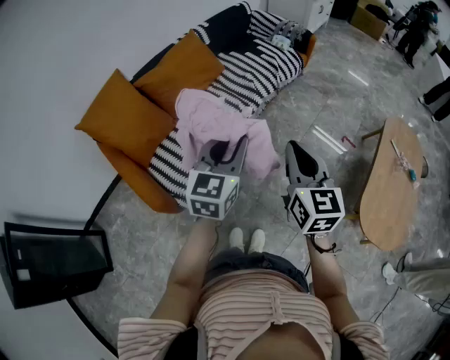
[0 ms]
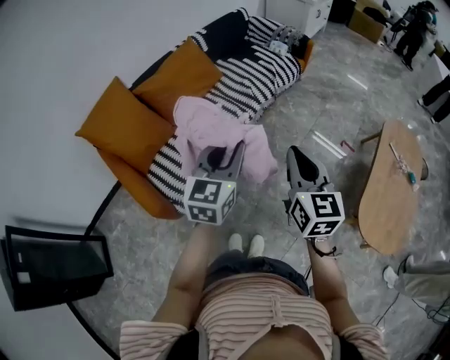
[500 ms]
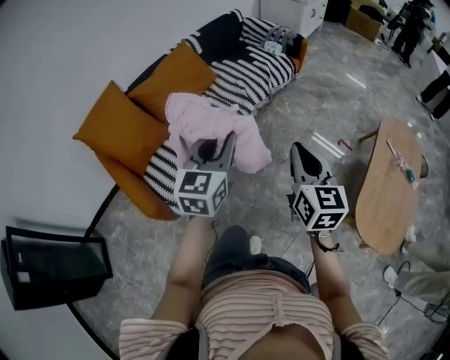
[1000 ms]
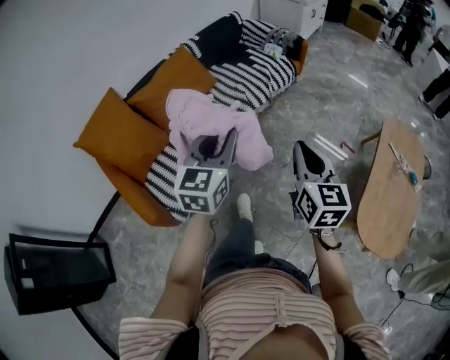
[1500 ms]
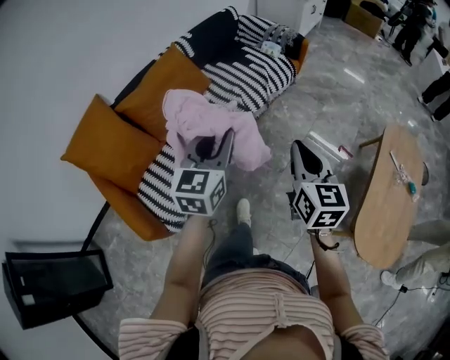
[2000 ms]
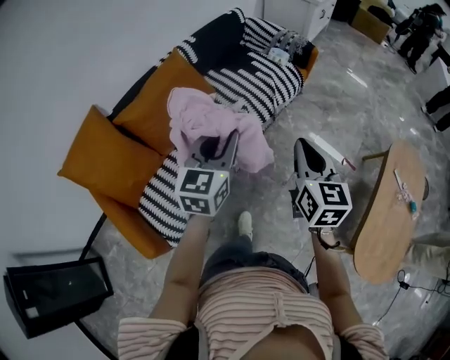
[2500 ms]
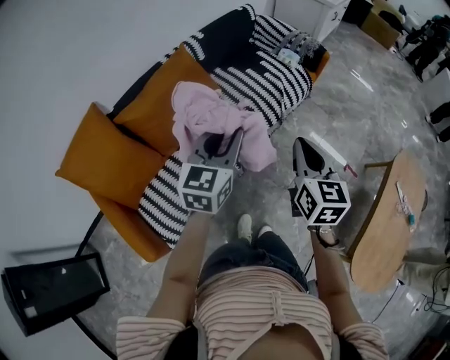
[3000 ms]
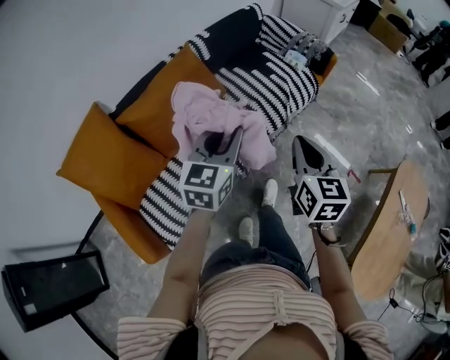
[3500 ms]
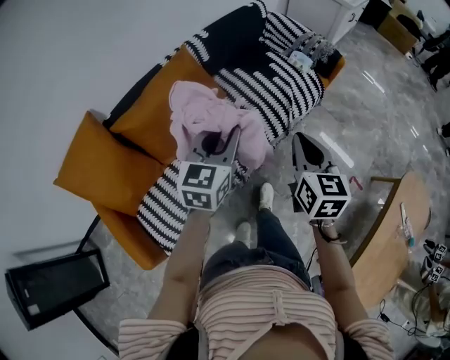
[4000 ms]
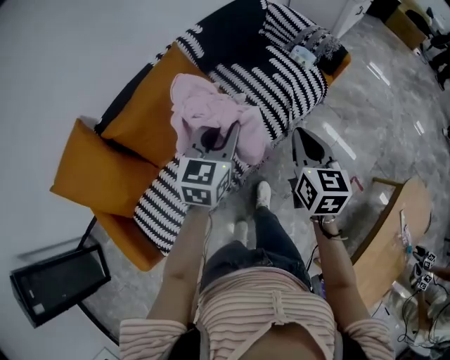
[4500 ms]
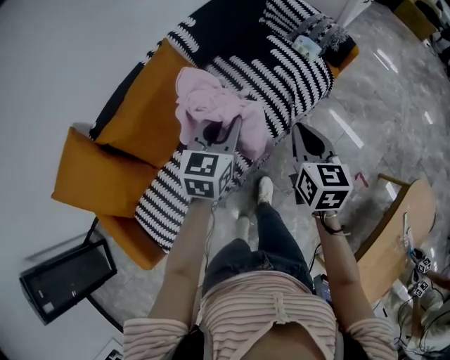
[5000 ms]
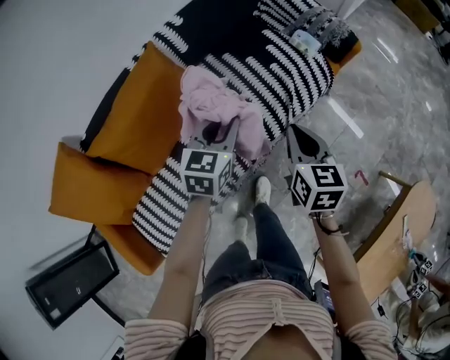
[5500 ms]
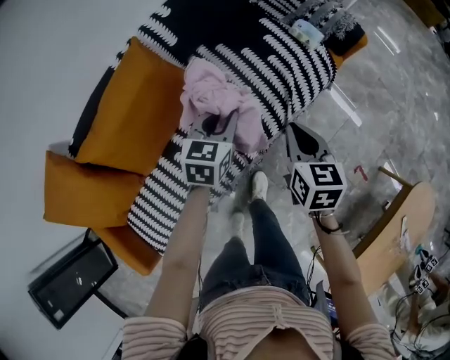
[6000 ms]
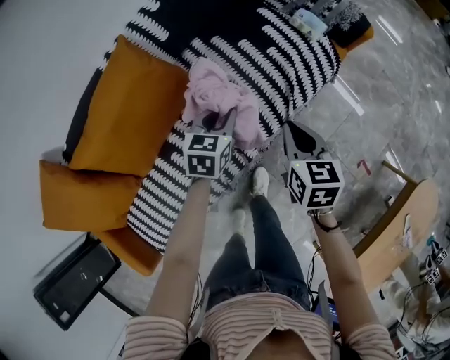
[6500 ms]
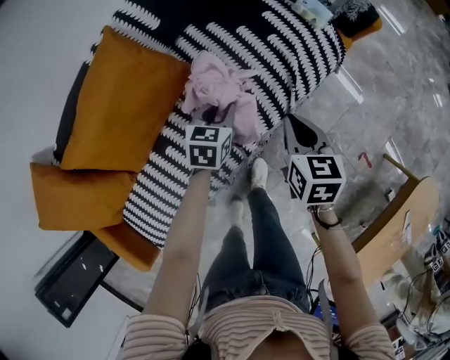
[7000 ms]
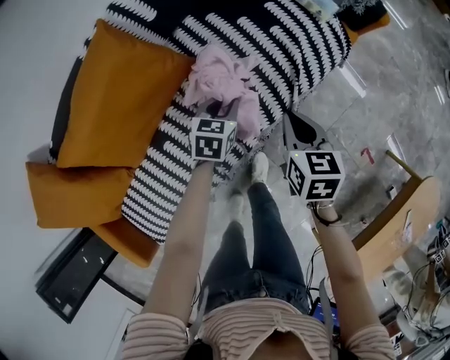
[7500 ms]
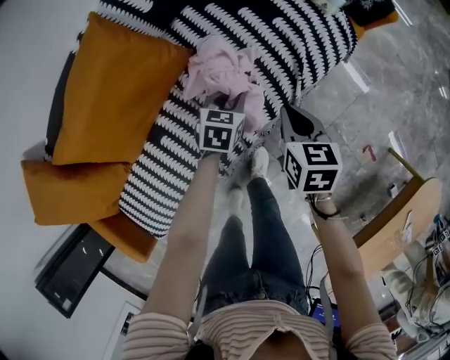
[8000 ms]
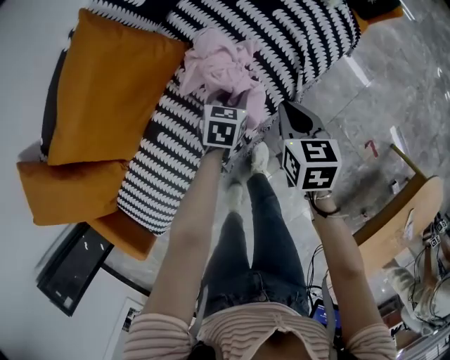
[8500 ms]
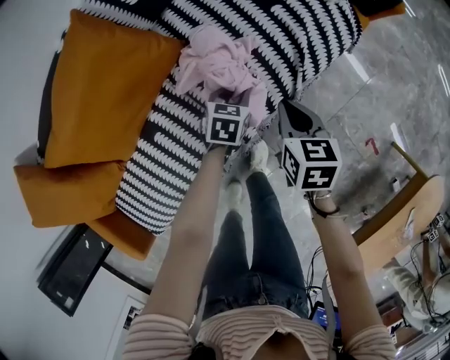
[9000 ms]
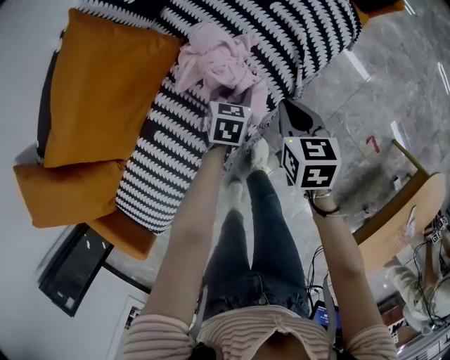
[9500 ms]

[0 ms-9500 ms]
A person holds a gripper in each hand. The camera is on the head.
0 ms to 2000 ms: The left gripper moves forward, some 15 cm; the right gripper goes roughly 15 cm forward and to the right.
2000 ms to 4000 ms: The grippers both shift forward by some 30 cm.
4000 ms to 5500 ms: Both grippers travel together forward and downward, approximately 25 cm.
5500 ms to 7500 ms: The right gripper travels downward by roughly 15 cm; the left gripper goes some 25 cm downward, and rotates about 20 degrees.
7500 ms to 9500 ms: Both grippers move downward, some 5 cm.

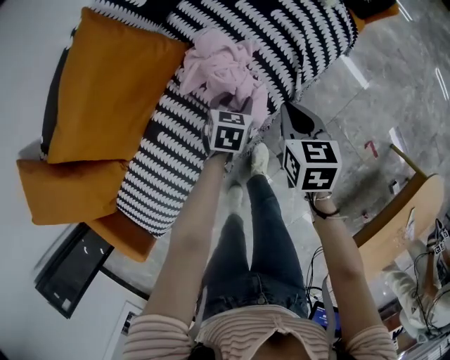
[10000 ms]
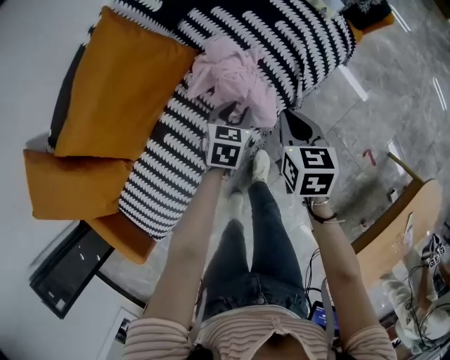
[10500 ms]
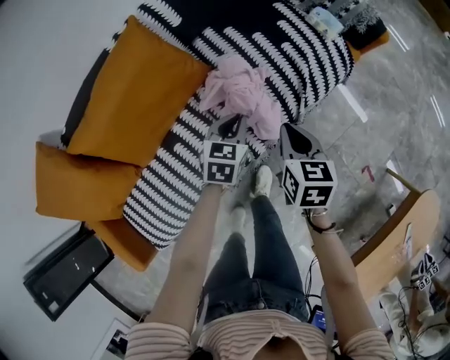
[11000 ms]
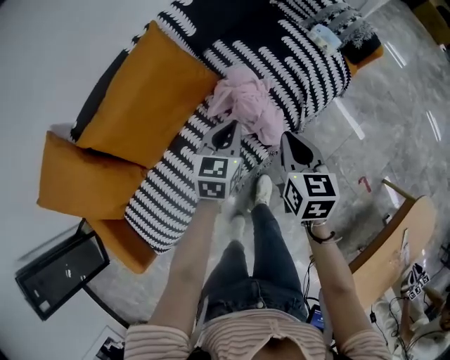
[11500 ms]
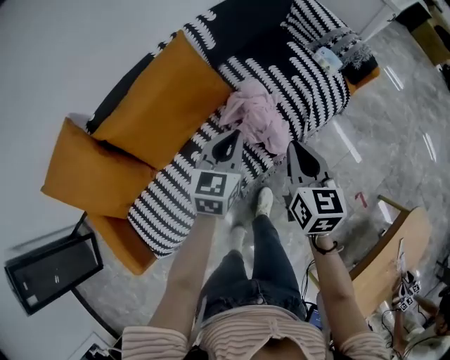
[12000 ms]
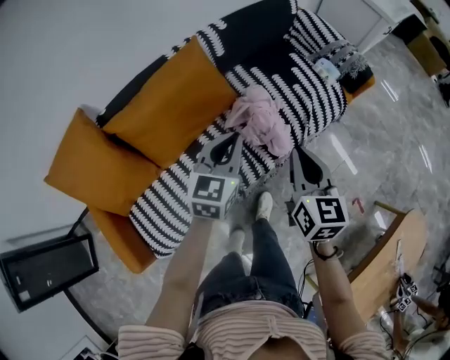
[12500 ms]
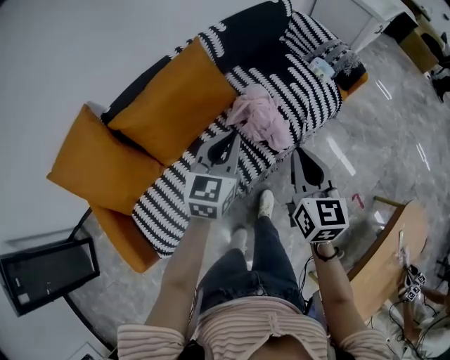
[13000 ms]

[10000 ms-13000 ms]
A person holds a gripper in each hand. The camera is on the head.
10000 ms to 11500 ms: The right gripper is displaced upward and to the left by roughly 15 cm; the left gripper is displaced upward by about 20 cm, rotates some 20 degrees, and closes.
11500 ms to 13000 ms: The right gripper heads upward and backward, covering about 20 cm. Meanwhile the left gripper is displaced upward, backward and to the left by roughly 25 cm.

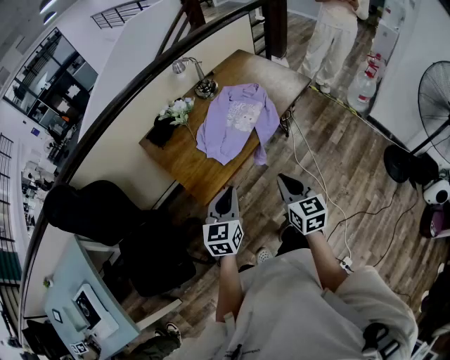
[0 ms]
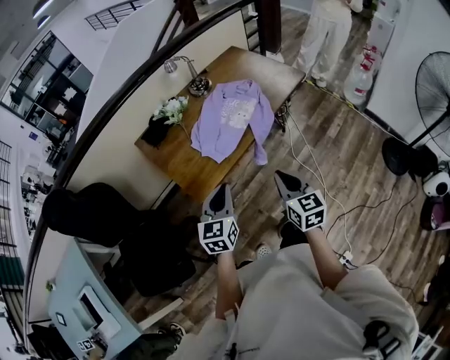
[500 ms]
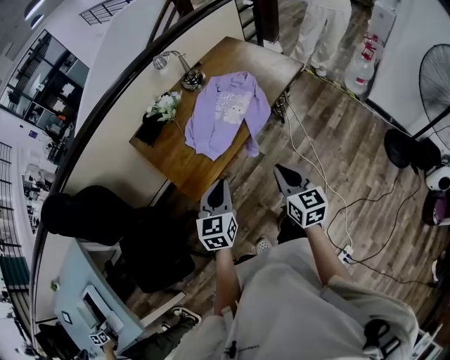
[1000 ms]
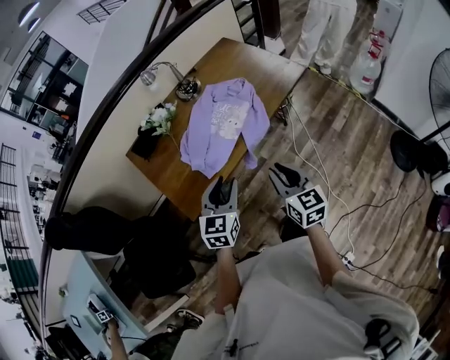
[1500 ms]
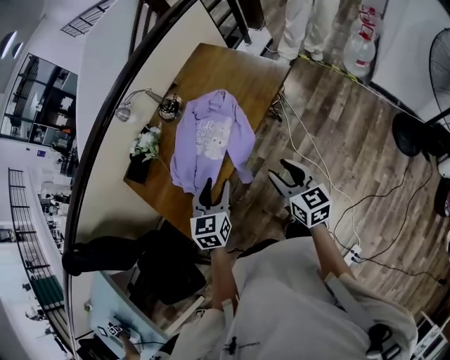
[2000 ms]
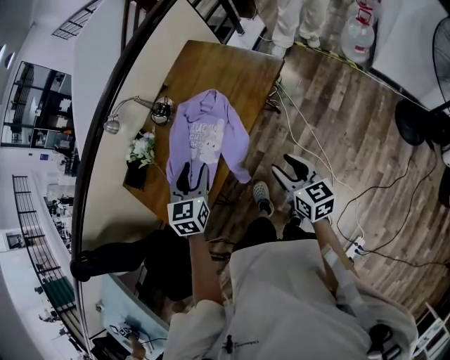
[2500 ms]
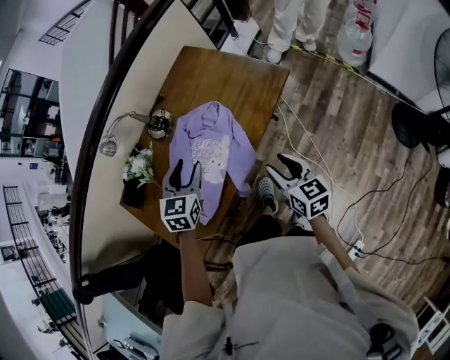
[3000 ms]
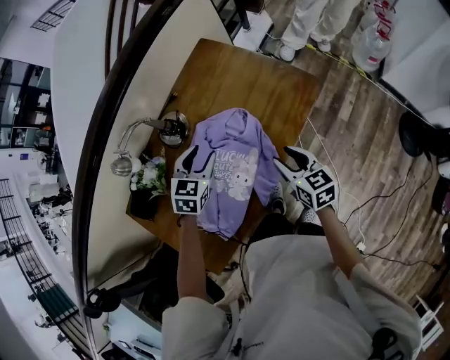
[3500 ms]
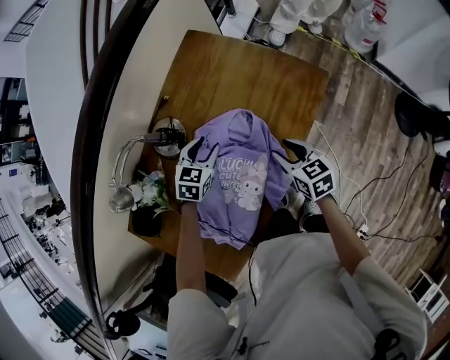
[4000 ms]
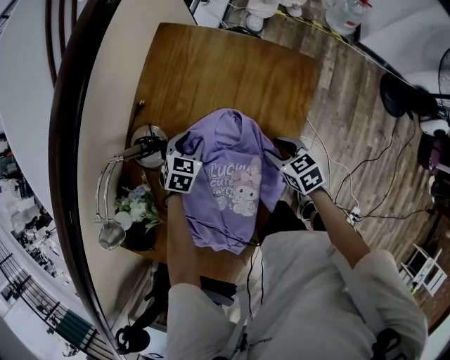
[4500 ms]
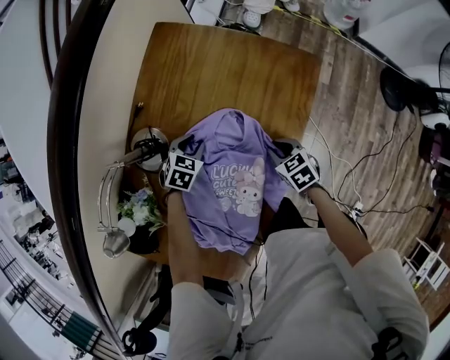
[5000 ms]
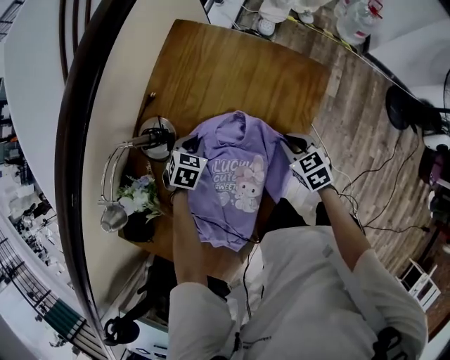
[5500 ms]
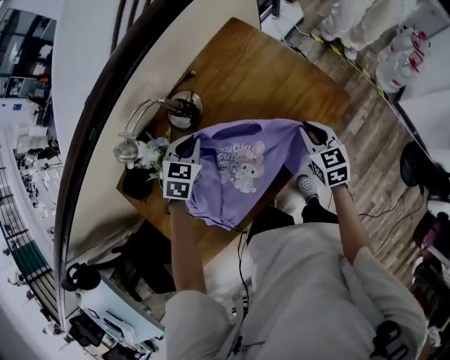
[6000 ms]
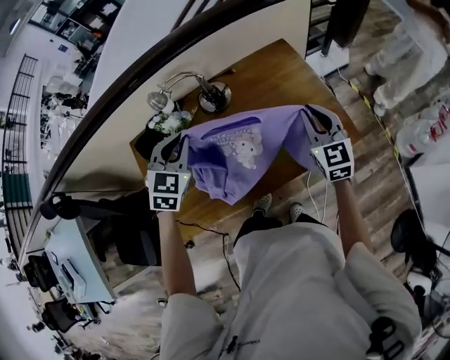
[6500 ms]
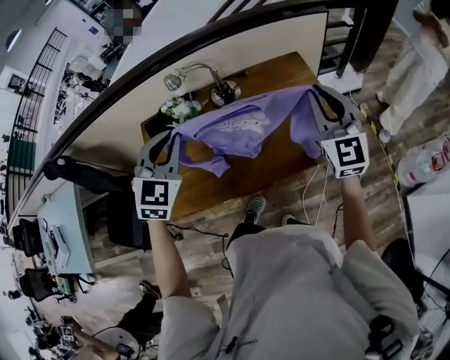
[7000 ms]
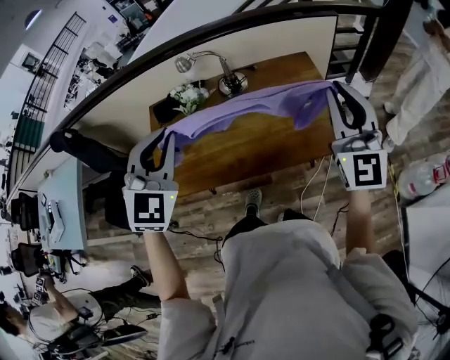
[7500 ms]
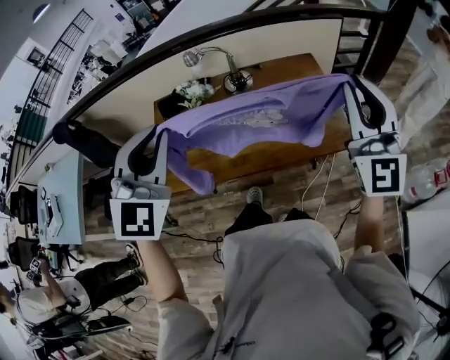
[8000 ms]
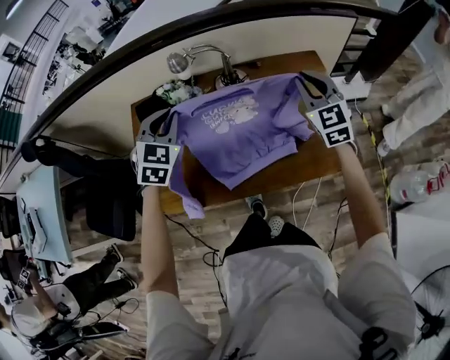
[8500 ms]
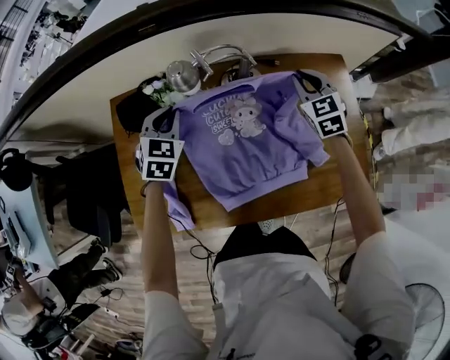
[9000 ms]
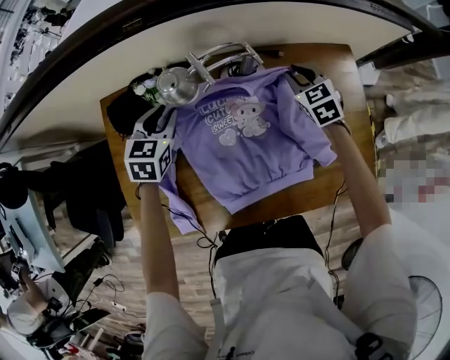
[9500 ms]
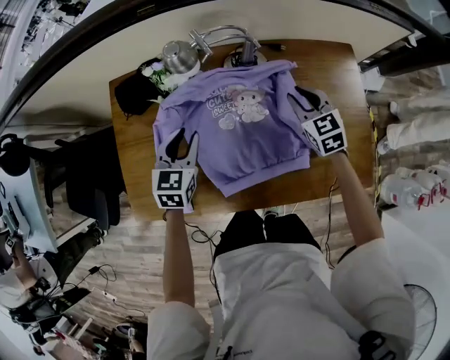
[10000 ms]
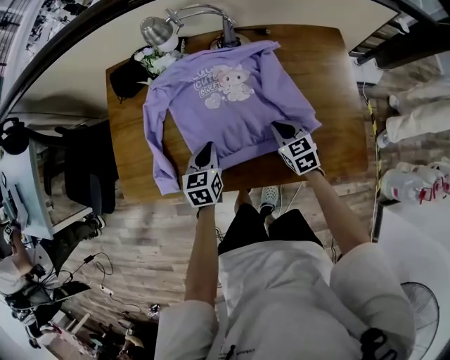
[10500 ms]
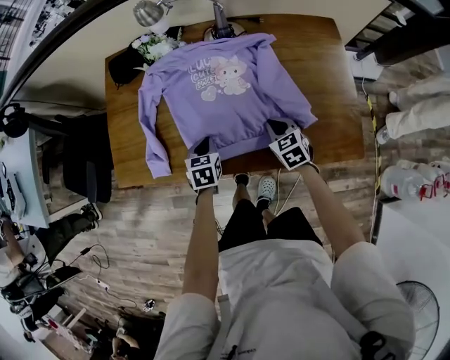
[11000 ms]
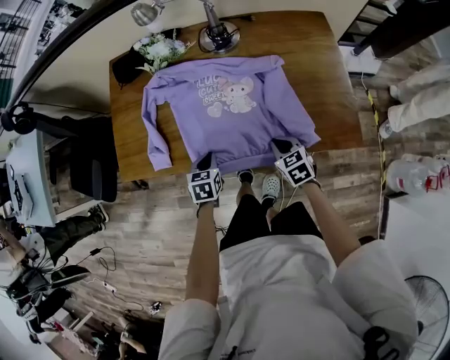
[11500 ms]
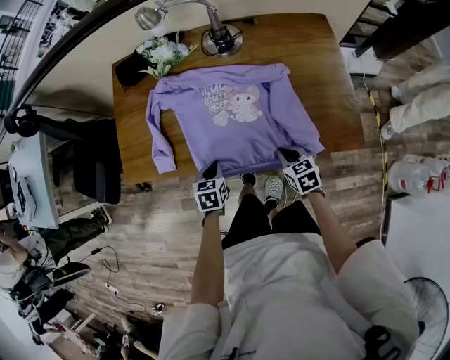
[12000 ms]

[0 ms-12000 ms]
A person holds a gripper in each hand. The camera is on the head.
0 ms to 2000 ms: The left gripper shifts approximately 30 cm forward and to the right, and opens. The right gripper goes approximately 30 cm to the right and forward, and opens up.
2000 ms to 4000 ms: Both grippers move forward and downward, some 40 cm. The left gripper rotates about 30 degrees, while the right gripper rotates approximately 20 degrees.
4000 ms to 6000 ms: The right gripper moves forward, approximately 5 cm, reaches approximately 10 cm downward, then returns, and closes. Meanwhile the left gripper shifts roughly 10 cm upward and to the left, and closes its fingers.
6000 ms to 8000 ms: The two grippers go roughly 35 cm upward. The right gripper tips its fingers upward by roughly 50 degrees. Meanwhile the left gripper points its fingers approximately 40 degrees further upward.
8000 ms to 10000 ms: Both grippers travel together downward and forward, some 60 cm. The left gripper twists about 40 degrees counterclockwise, seen from behind, and opens up, while the right gripper angles its fingers downward, by roughly 50 degrees.
10000 ms to 12000 ms: The left gripper heads backward and downward, covering roughly 30 cm, rotates about 30 degrees, and closes. Meanwhile the right gripper is displaced backward by about 35 cm, and swivels roughly 20 degrees.

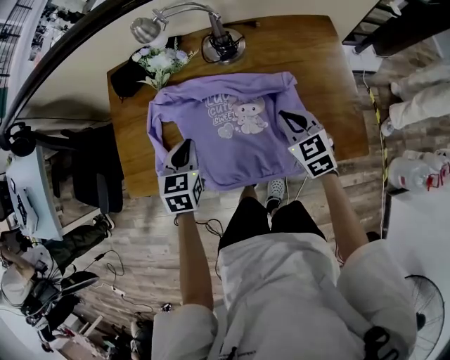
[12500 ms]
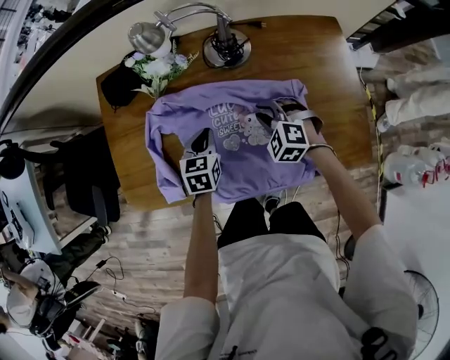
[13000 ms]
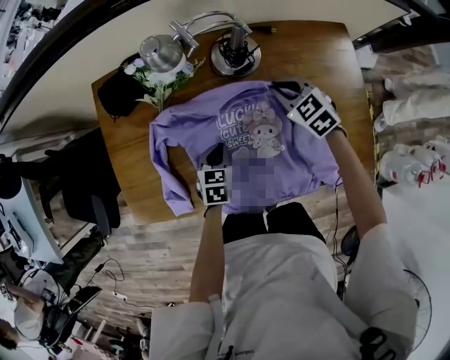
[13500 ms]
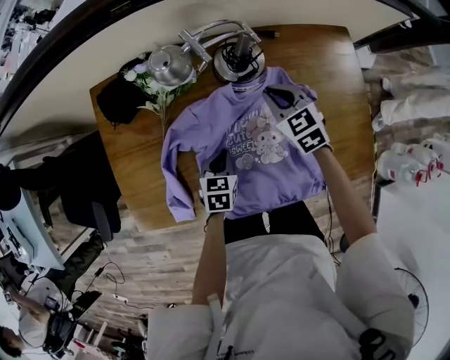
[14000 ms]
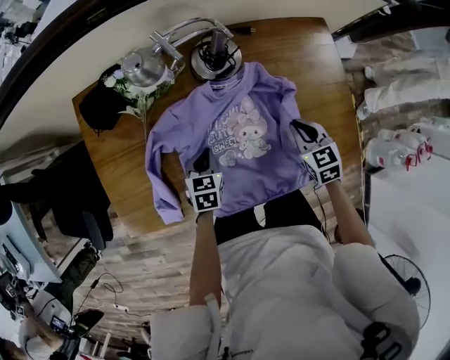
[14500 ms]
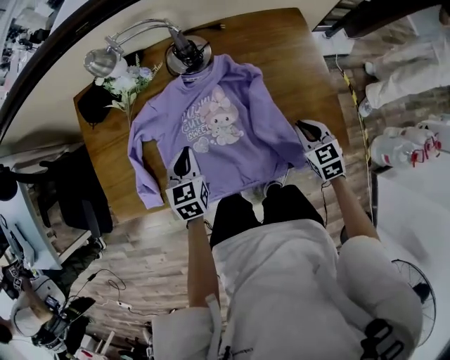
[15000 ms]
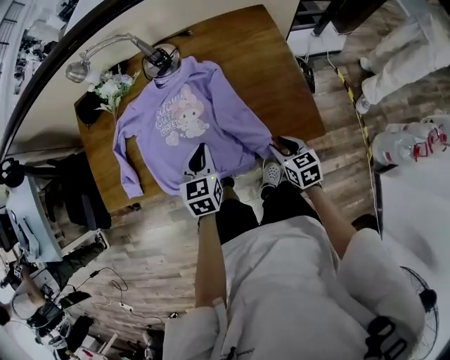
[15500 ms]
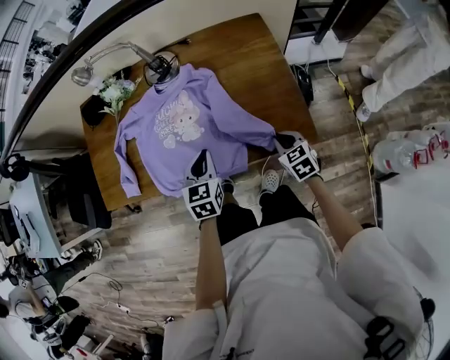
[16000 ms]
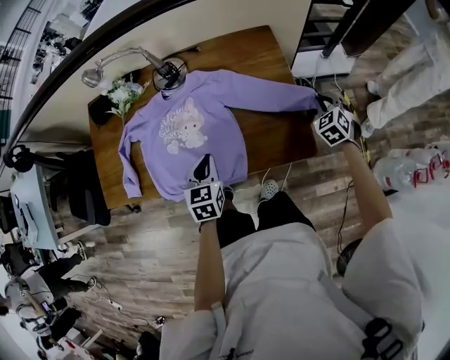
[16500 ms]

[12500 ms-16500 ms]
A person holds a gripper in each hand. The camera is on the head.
12500 ms to 14500 ms: The right gripper travels downward by about 5 cm, and moves roughly 20 cm forward and comes back. The left gripper travels downward and forward by approximately 15 cm.
14500 ms to 16500 ms: The right gripper shifts roughly 35 cm to the right, swivels about 30 degrees, and opens, then closes again; the left gripper travels to the right, upward and backward by roughly 30 cm.
